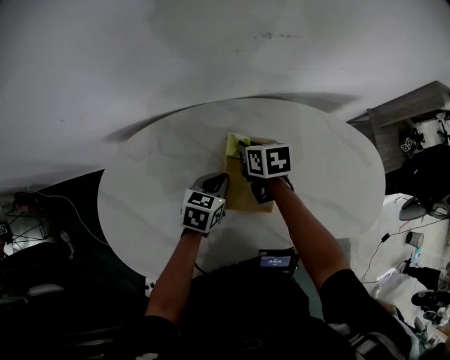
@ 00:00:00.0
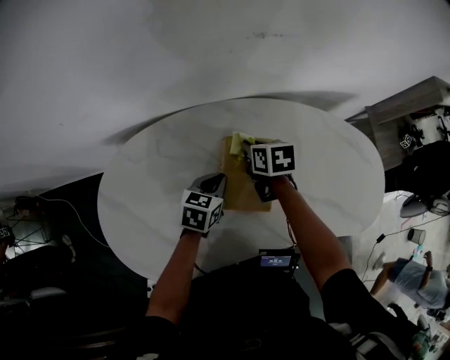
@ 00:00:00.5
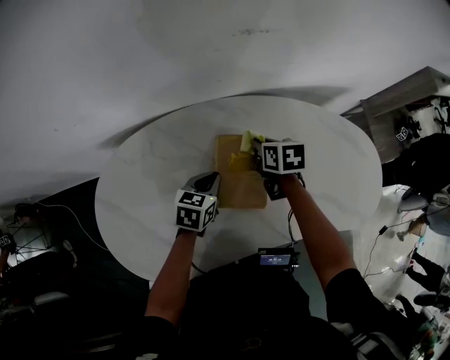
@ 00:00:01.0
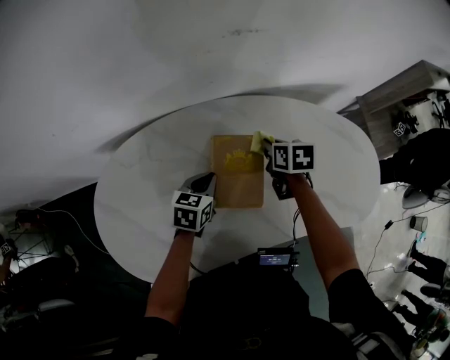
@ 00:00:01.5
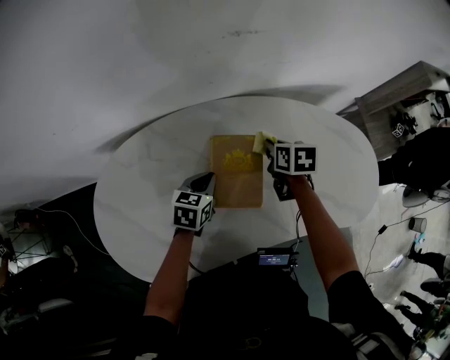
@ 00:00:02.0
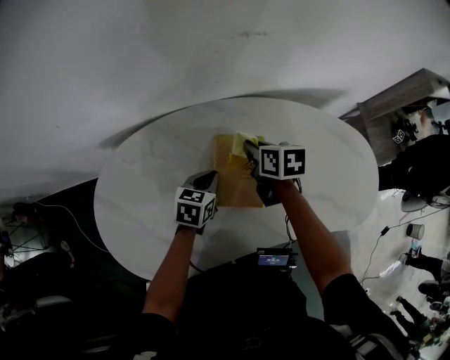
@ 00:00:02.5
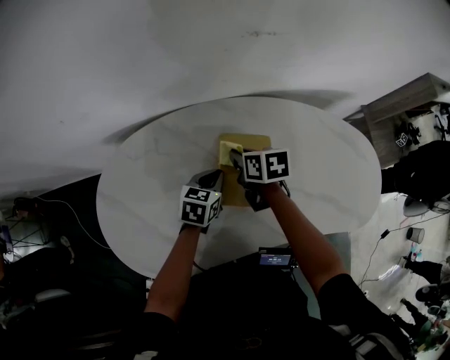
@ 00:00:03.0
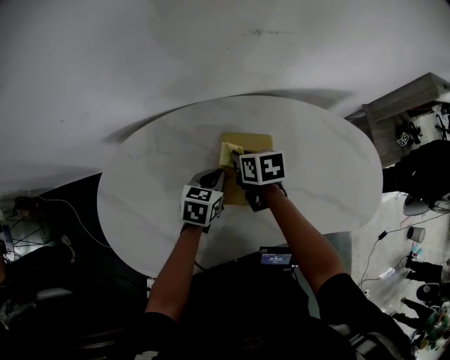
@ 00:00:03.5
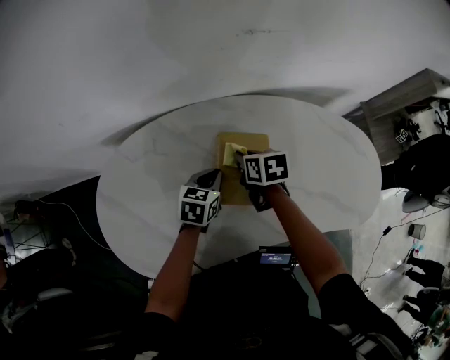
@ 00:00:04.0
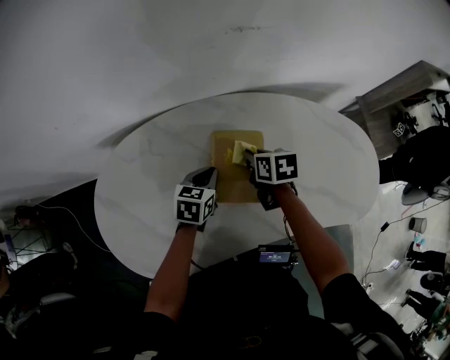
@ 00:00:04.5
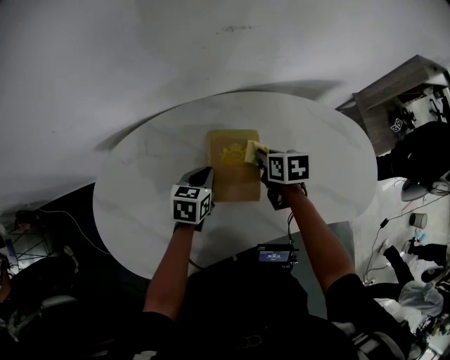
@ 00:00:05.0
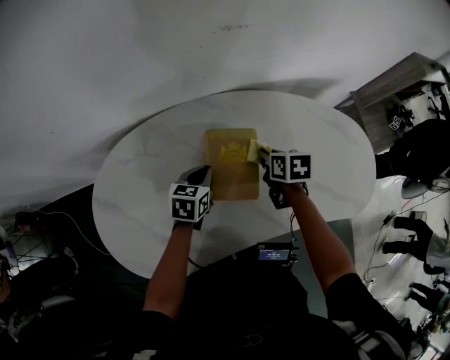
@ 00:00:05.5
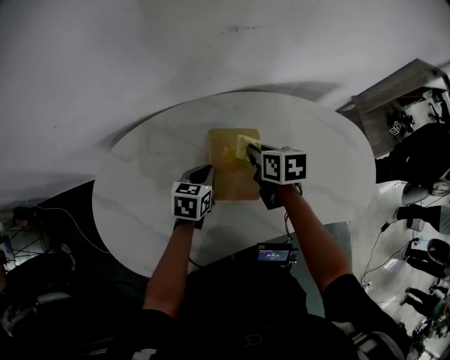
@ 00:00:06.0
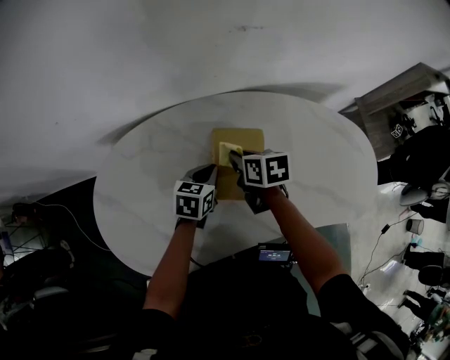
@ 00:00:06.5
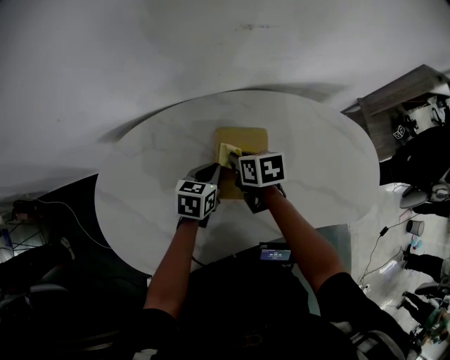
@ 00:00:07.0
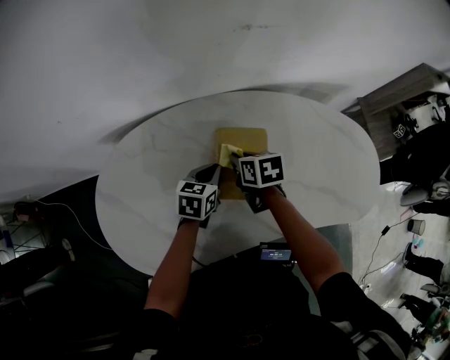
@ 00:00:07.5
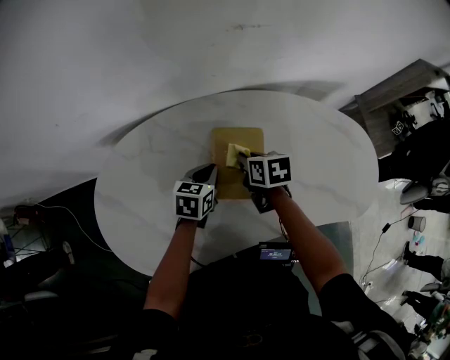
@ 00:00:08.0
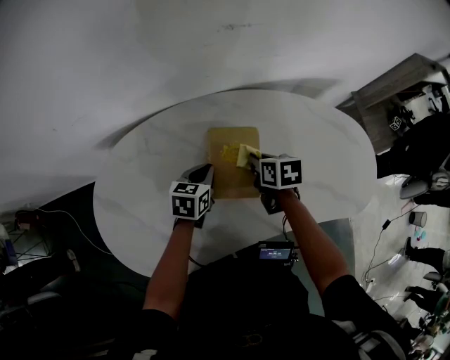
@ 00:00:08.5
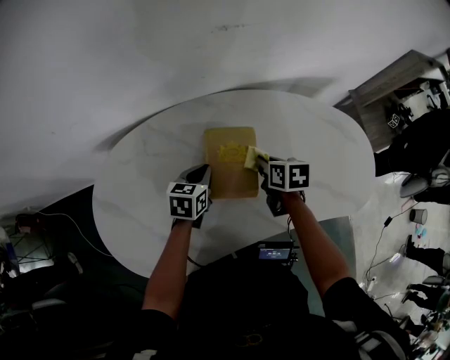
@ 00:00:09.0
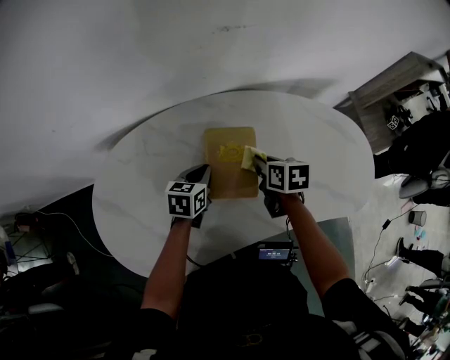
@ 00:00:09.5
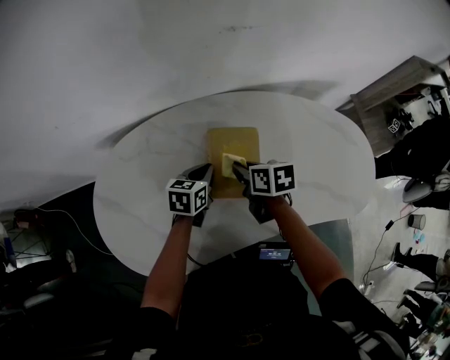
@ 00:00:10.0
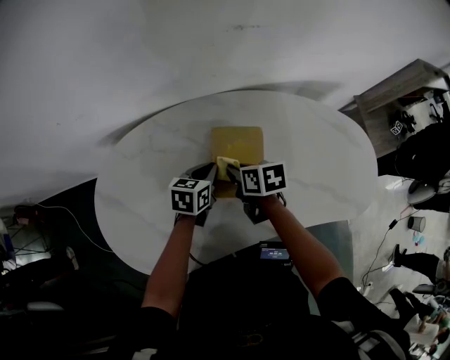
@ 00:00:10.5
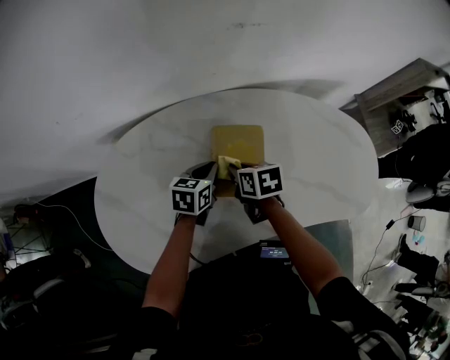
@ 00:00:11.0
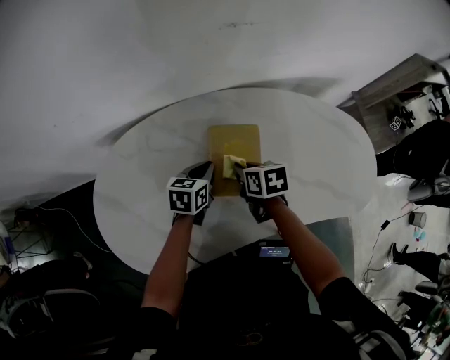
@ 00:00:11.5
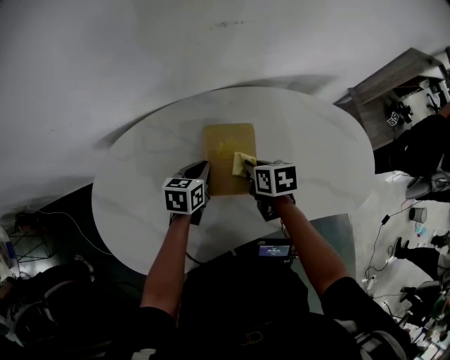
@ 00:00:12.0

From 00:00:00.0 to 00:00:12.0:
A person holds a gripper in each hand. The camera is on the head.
From 00:00:00.0 to 00:00:02.0: The right gripper is displaced to the right by about 15 cm.
From 00:00:02.0 to 00:00:04.0: The right gripper is displaced to the left by about 10 cm.
From 00:00:04.0 to 00:00:06.0: The right gripper moves to the right, roughly 5 cm.
From 00:00:06.0 to 00:00:08.0: The right gripper changes place by roughly 5 cm.
From 00:00:08.0 to 00:00:10.0: The right gripper reaches about 10 cm to the right, then returns.
From 00:00:10.0 to 00:00:12.0: The right gripper changes place by roughly 5 cm.

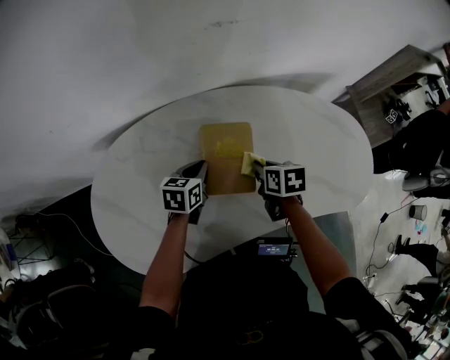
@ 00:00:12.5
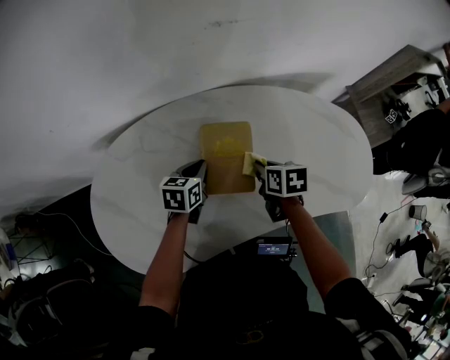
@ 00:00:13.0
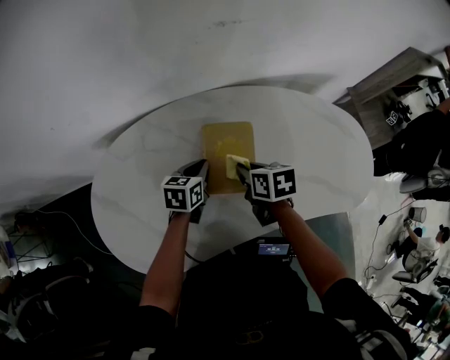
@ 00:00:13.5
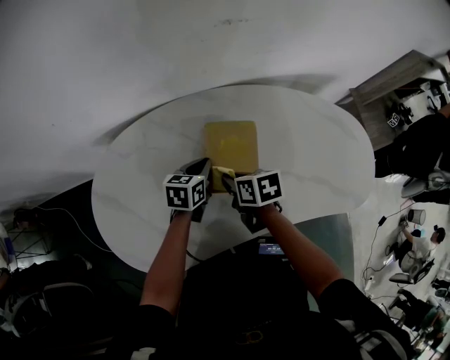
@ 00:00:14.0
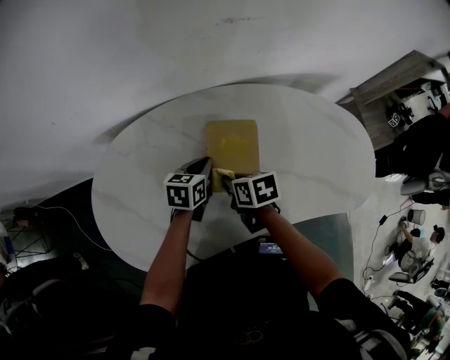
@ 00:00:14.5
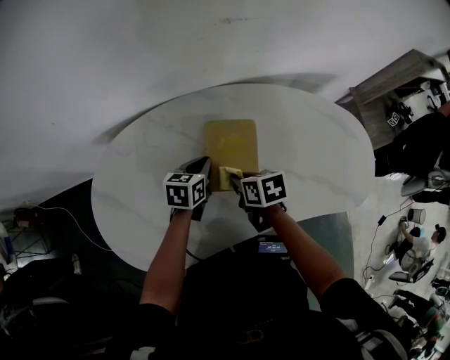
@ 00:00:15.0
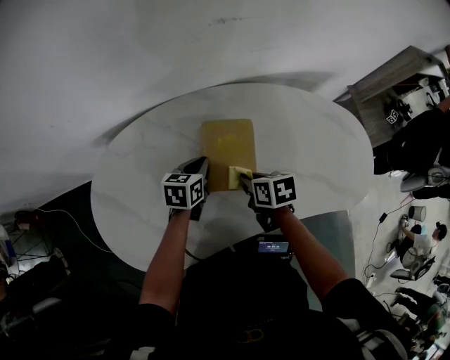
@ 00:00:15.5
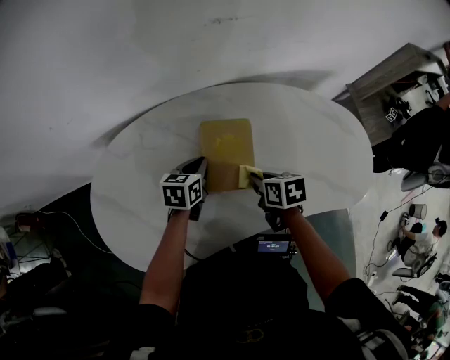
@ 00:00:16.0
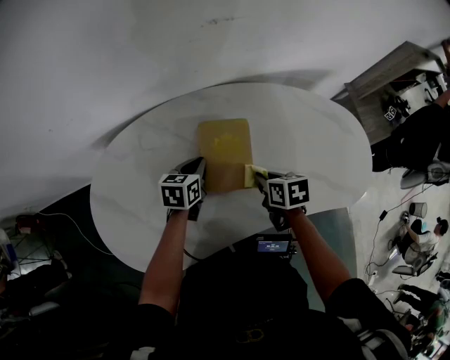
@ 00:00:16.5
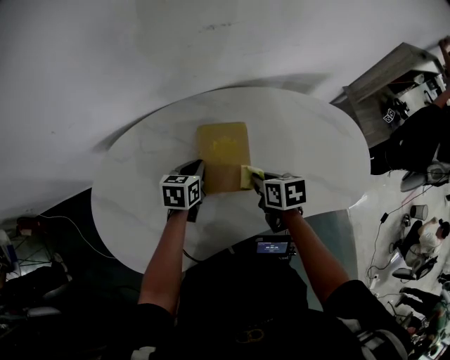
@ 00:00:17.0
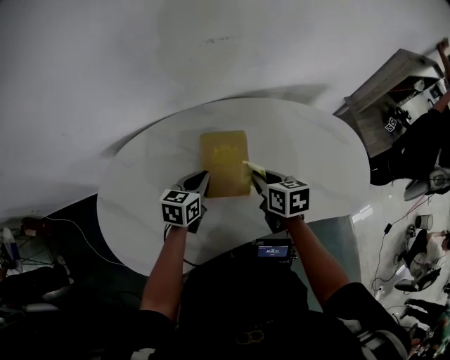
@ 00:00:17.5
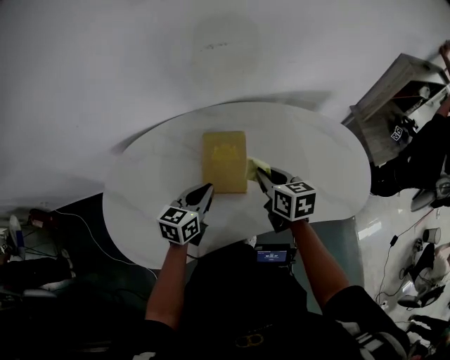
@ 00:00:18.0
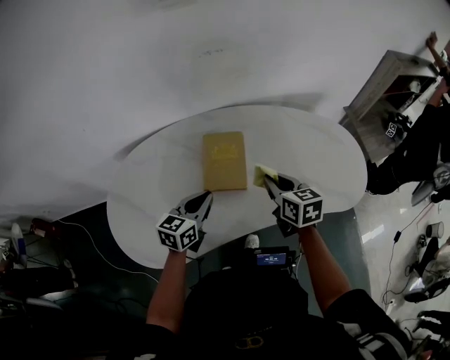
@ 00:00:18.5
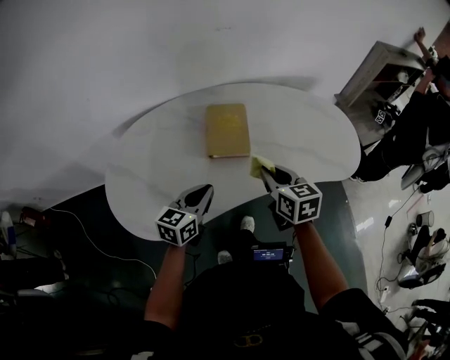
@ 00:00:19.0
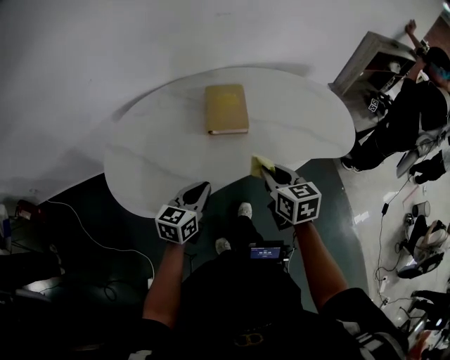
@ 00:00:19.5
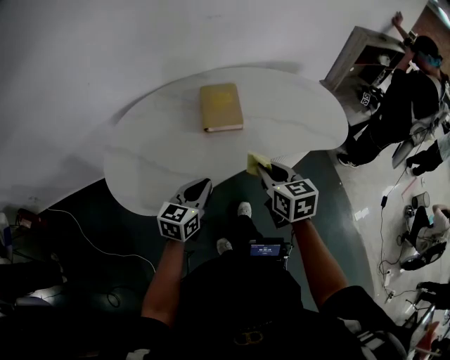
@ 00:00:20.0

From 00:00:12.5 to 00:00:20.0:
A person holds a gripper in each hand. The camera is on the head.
From 00:00:12.5 to 00:00:14.5: The right gripper heads to the left, covering about 10 cm.
From 00:00:14.5 to 00:00:16.5: The right gripper shifts roughly 10 cm to the right.
From 00:00:16.5 to 00:00:18.0: The left gripper goes about 10 cm backward and upward. Meanwhile the right gripper travels upward by about 10 cm, and turns by roughly 30 degrees.
From 00:00:18.0 to 00:00:20.0: The grippers both shift backward by some 25 cm.

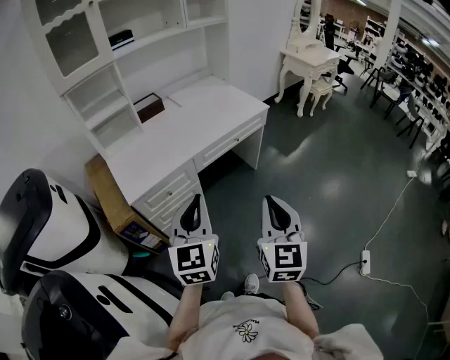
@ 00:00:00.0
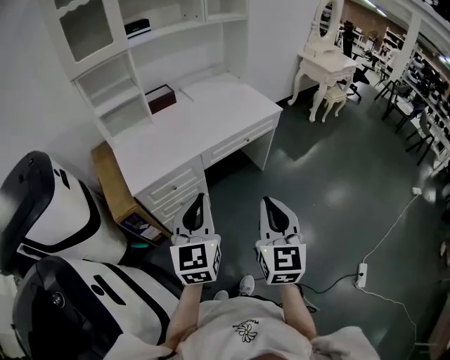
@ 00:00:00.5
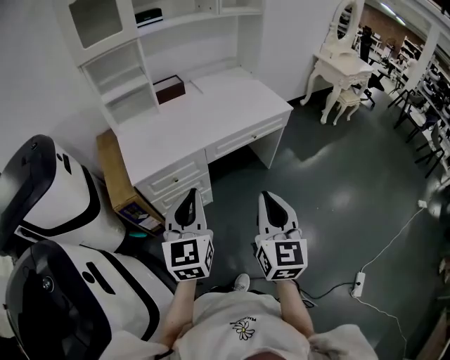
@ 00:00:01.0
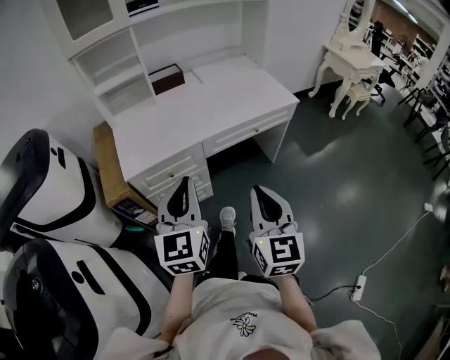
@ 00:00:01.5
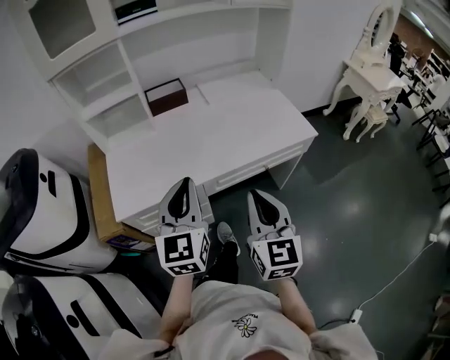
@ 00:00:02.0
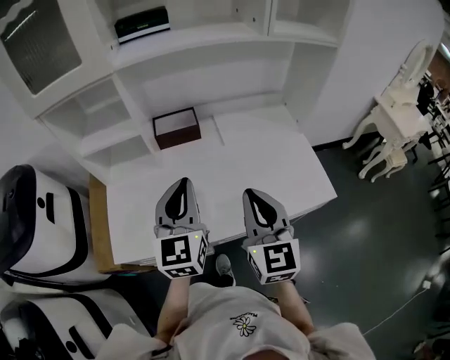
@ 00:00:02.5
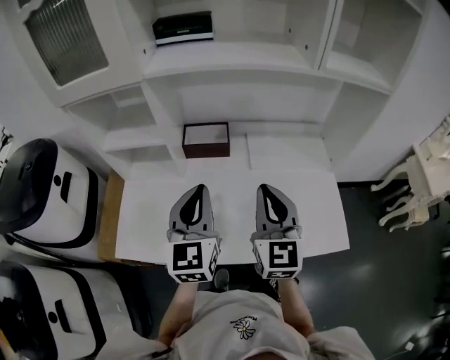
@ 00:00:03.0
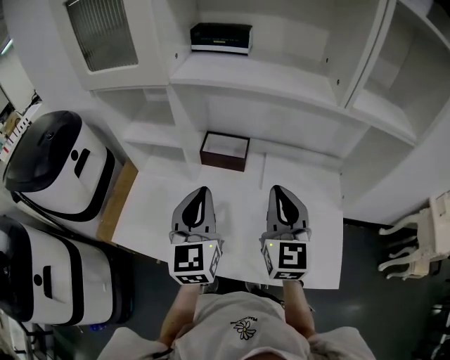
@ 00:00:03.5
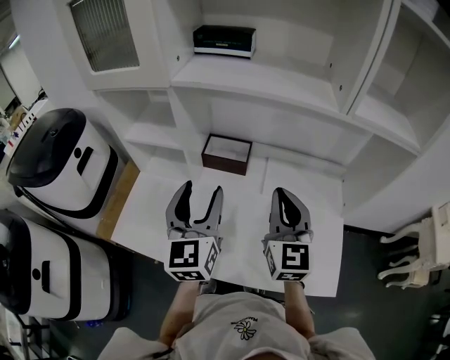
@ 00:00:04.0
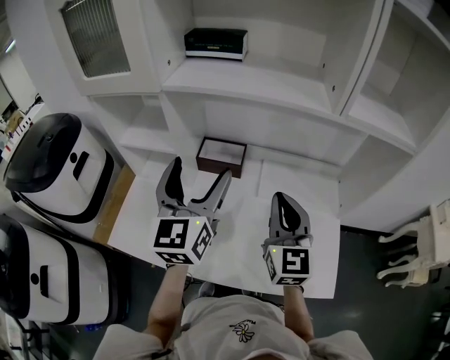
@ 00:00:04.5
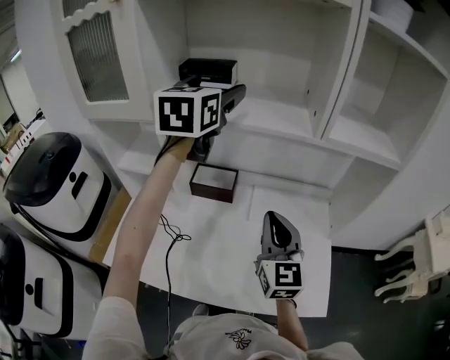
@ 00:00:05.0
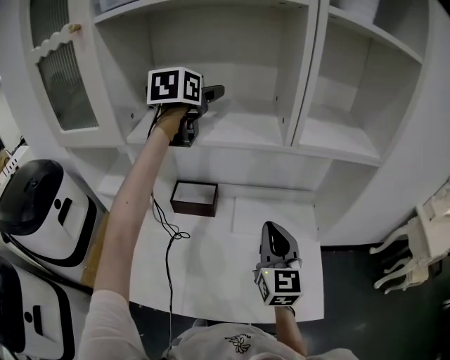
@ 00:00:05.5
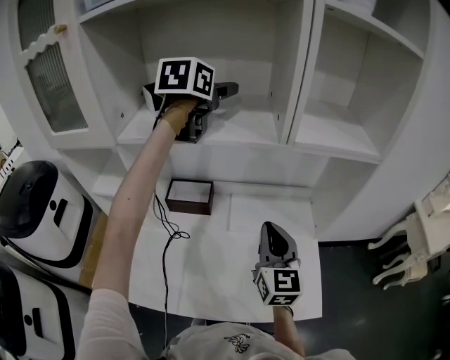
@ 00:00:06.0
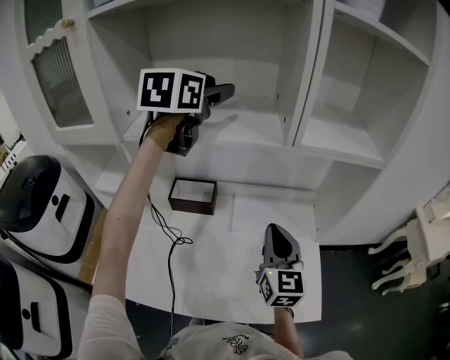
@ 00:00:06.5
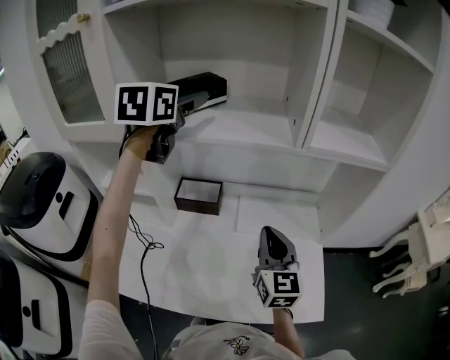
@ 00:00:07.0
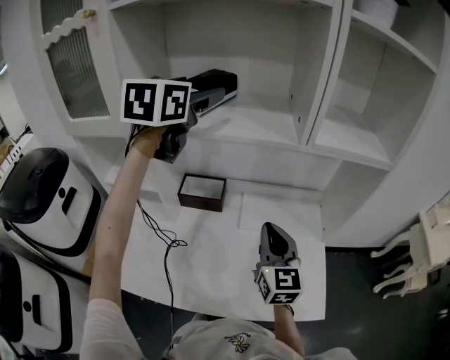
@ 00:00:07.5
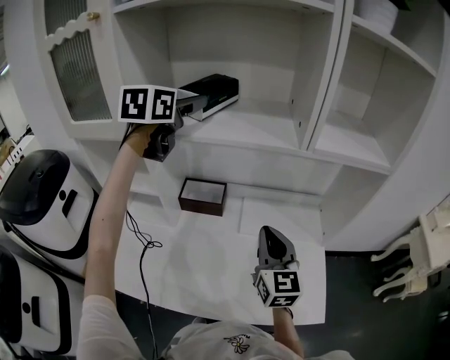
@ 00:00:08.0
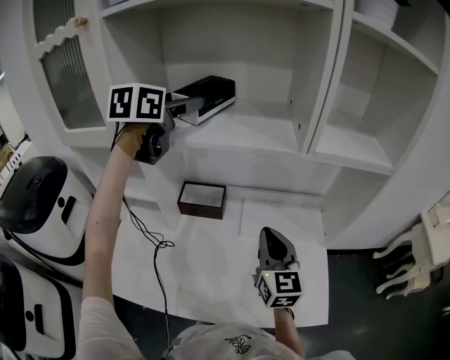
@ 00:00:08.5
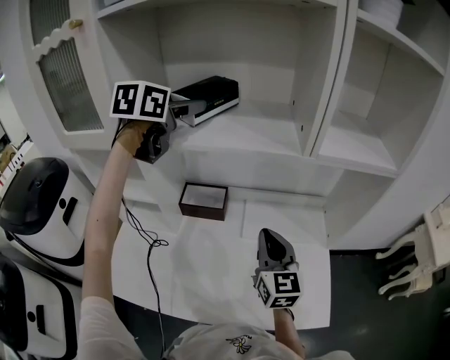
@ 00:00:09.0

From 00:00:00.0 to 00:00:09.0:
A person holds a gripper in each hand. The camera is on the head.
From 00:00:00.0 to 00:00:02.0: The grippers both shift forward by roughly 30 cm. The right gripper rotates some 20 degrees.
From 00:00:02.0 to 00:00:04.5: The right gripper moves about 50 cm, and turns by roughly 30 degrees, while the left gripper ends up some 40 cm from where it was, rotates some 30 degrees, and opens its fingers.
From 00:00:04.5 to 00:00:07.0: The left gripper heads forward and upward, covering about 25 cm, and changes its angle by some 20 degrees.
From 00:00:07.0 to 00:00:09.0: The grippers move only a little.
